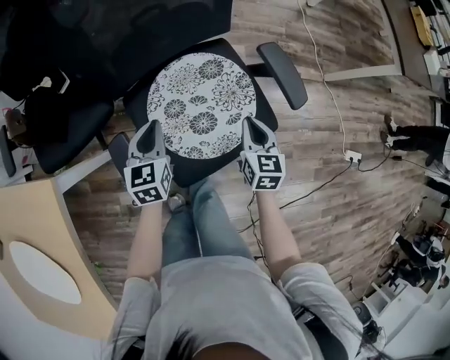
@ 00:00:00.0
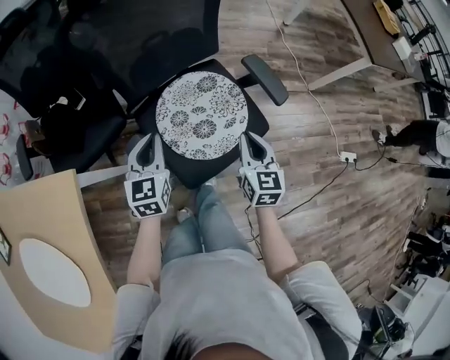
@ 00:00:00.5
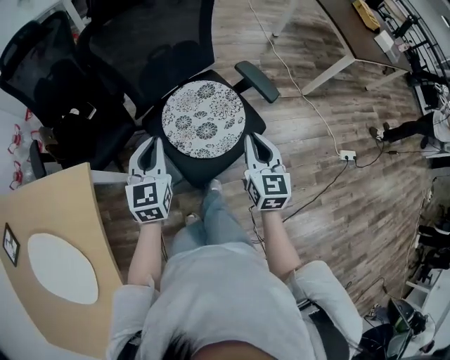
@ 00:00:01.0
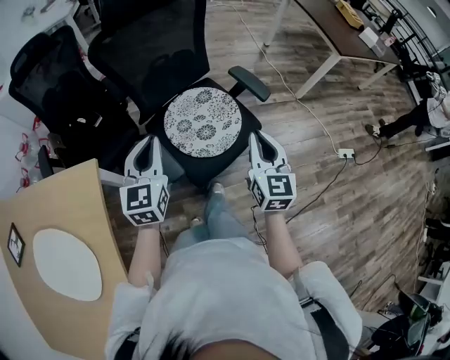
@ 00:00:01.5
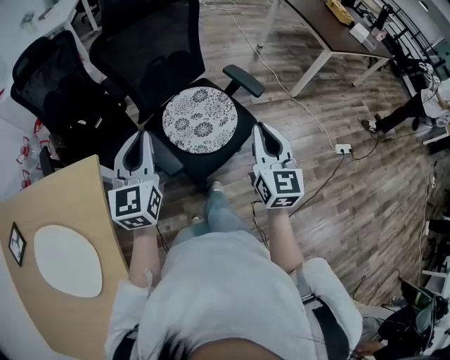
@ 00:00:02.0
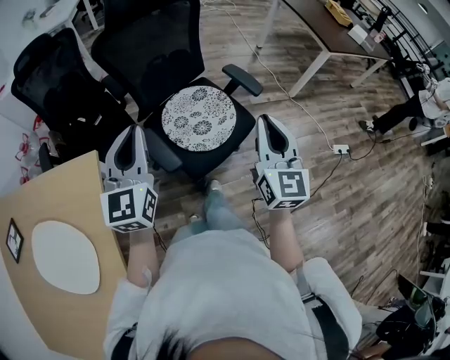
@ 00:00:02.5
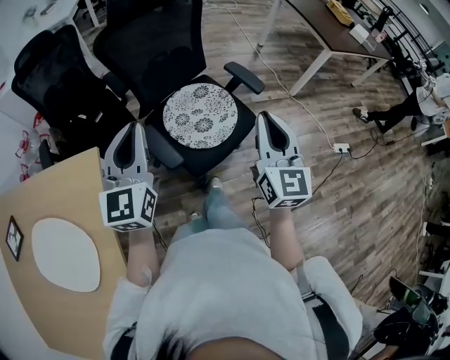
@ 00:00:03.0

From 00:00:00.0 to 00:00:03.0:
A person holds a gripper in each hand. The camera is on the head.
From 00:00:00.0 to 00:00:01.5: The grippers both shift upward and backward by approximately 30 cm. The right gripper changes its angle by about 30 degrees, while the left gripper rotates roughly 30 degrees.
From 00:00:01.5 to 00:00:03.0: The two grippers go roughly 10 cm upward and backward.

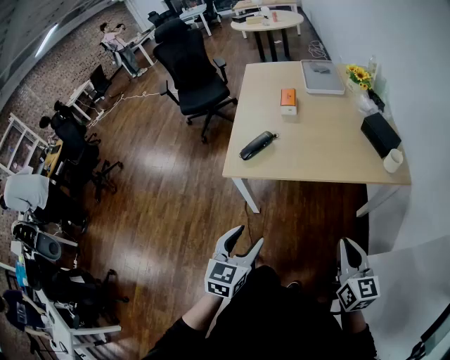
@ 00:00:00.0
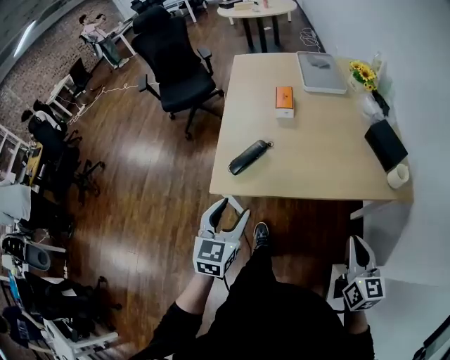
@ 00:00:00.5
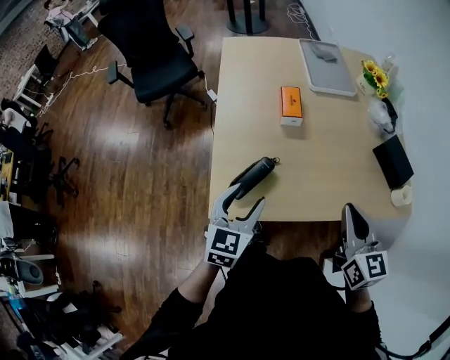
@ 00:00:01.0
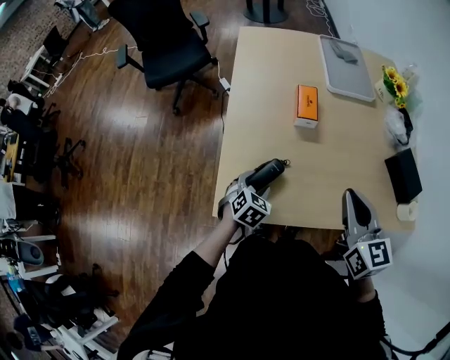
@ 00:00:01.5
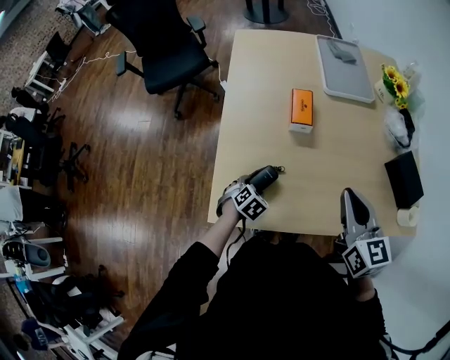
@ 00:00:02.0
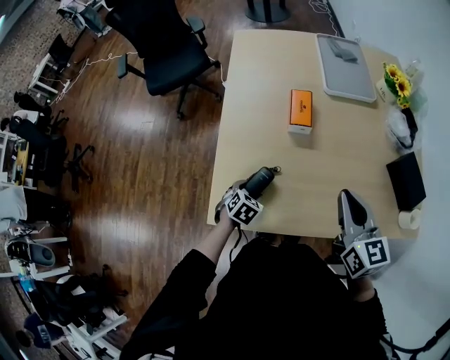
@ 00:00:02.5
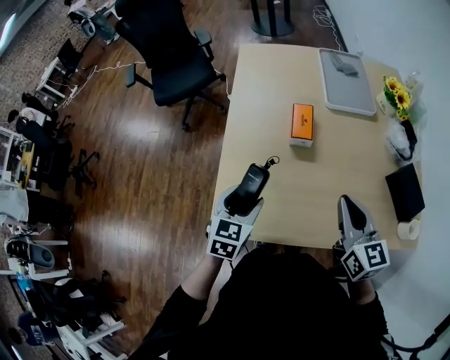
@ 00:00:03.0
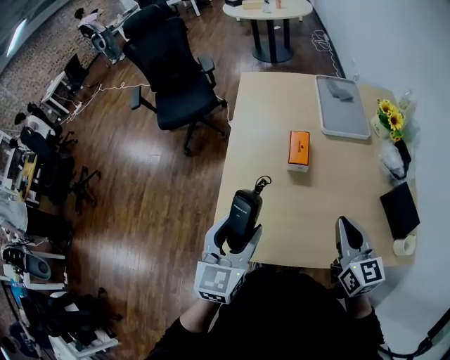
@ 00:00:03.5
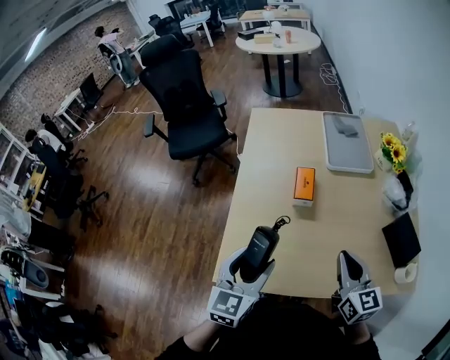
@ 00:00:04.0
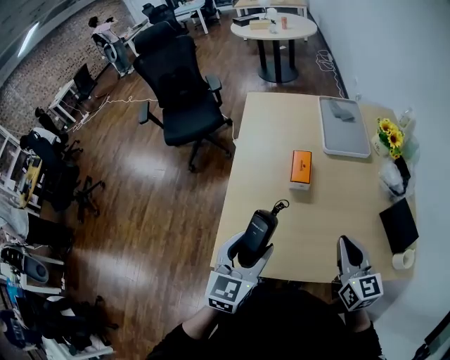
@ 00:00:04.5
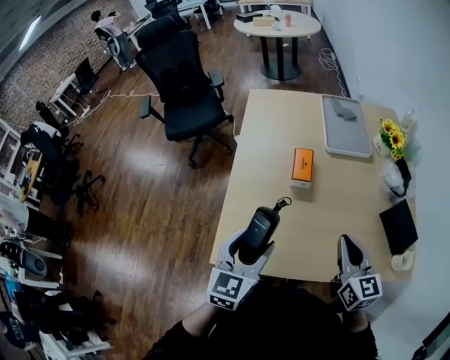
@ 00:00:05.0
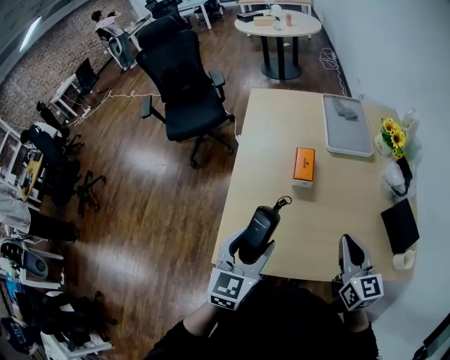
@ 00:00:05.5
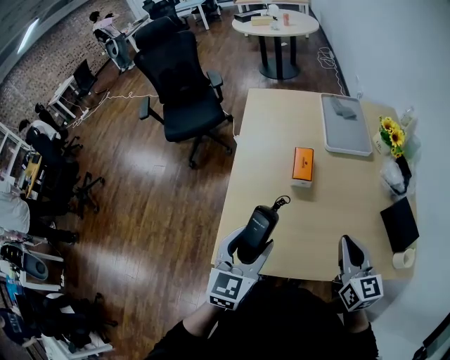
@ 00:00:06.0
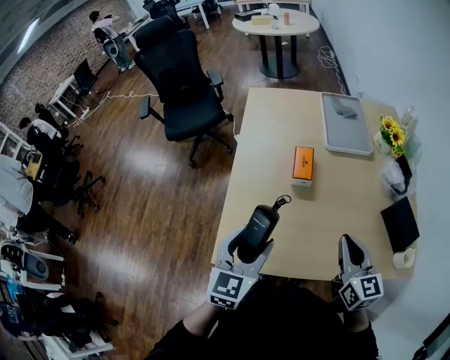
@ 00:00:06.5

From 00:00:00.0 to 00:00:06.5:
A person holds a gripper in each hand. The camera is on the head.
From 00:00:00.0 to 00:00:02.0: The two grippers travel together, forward, roughly 50 cm. The left gripper heads downward, covering roughly 25 cm, and tips its fingers downward by about 40 degrees.
From 00:00:02.0 to 00:00:04.5: The left gripper goes some 30 cm upward, and tilts its fingers approximately 50 degrees upward.
From 00:00:04.5 to 00:00:06.5: Both grippers stay put.

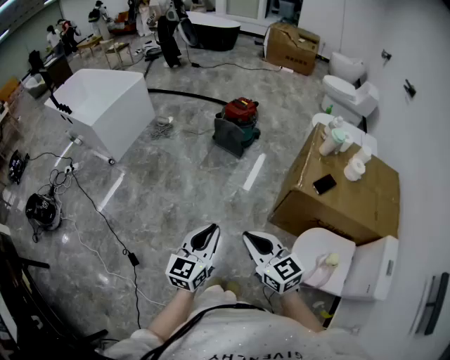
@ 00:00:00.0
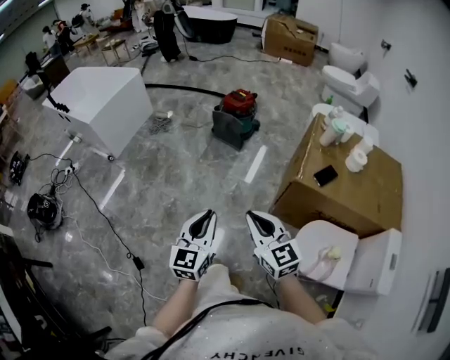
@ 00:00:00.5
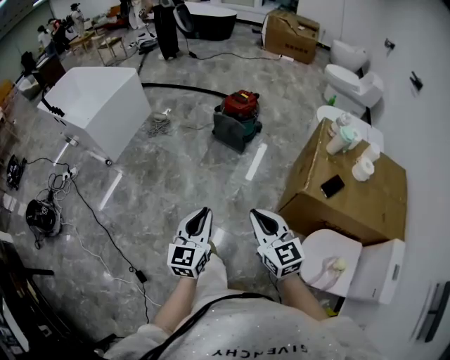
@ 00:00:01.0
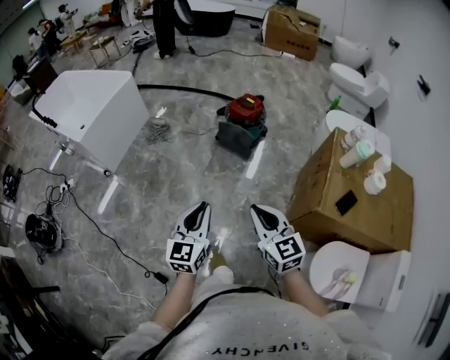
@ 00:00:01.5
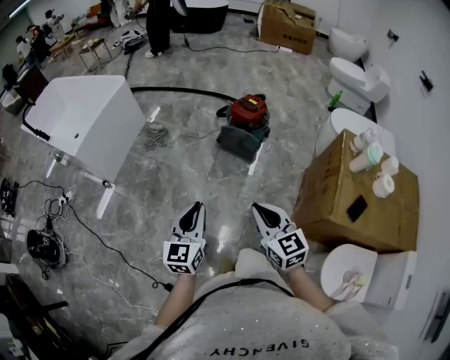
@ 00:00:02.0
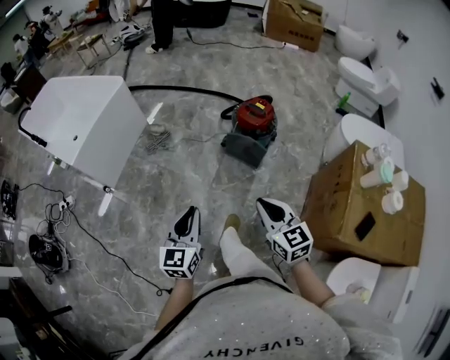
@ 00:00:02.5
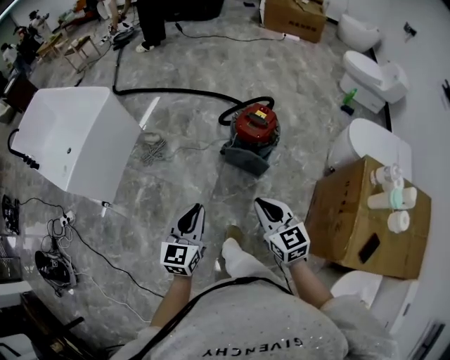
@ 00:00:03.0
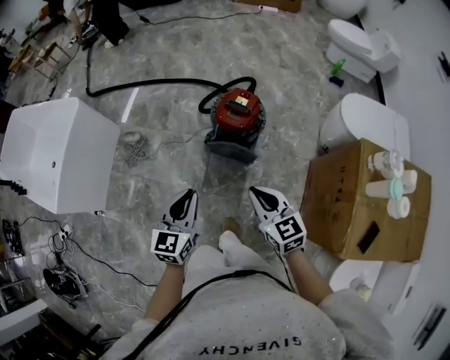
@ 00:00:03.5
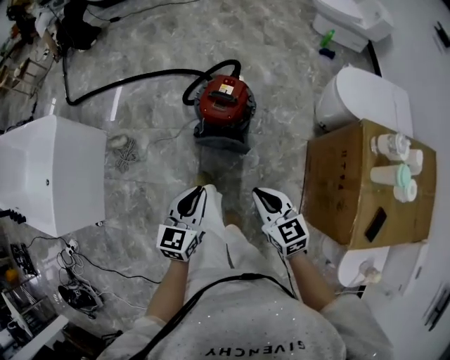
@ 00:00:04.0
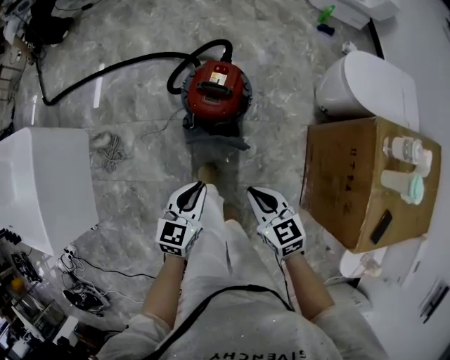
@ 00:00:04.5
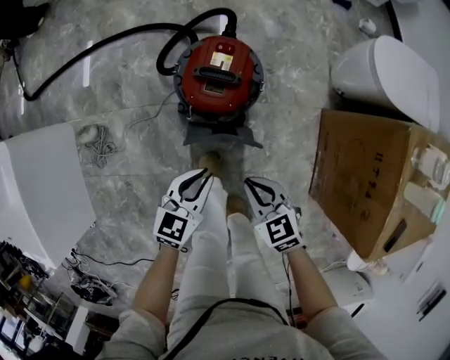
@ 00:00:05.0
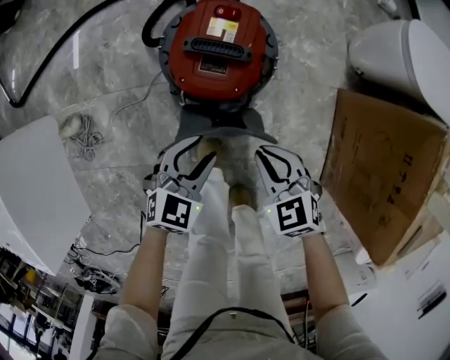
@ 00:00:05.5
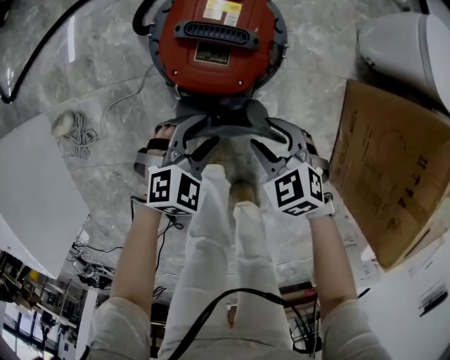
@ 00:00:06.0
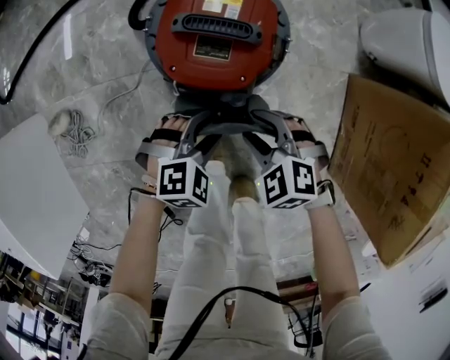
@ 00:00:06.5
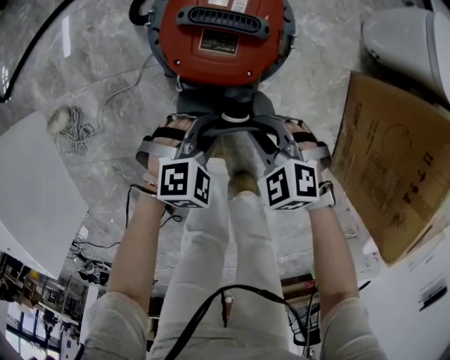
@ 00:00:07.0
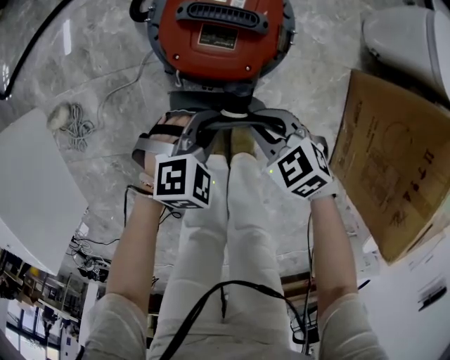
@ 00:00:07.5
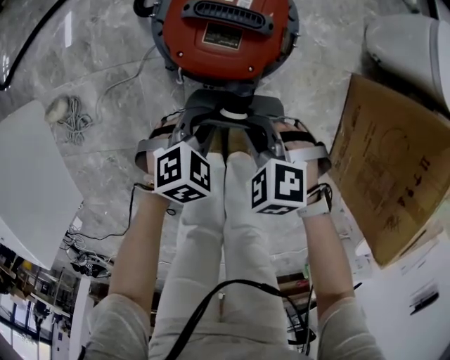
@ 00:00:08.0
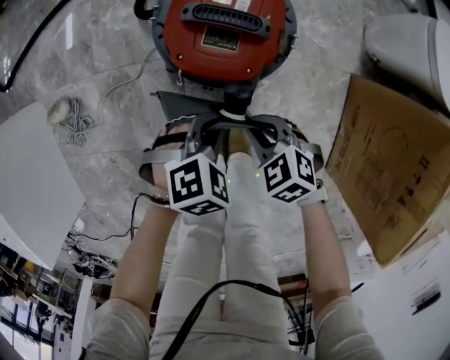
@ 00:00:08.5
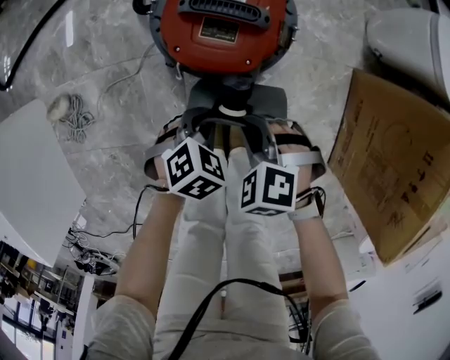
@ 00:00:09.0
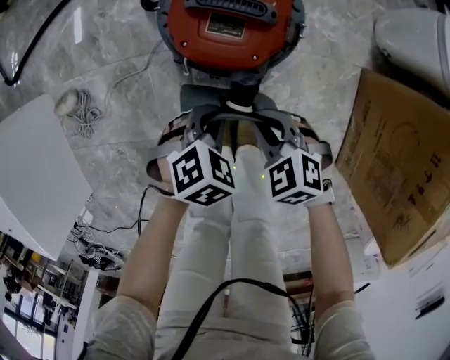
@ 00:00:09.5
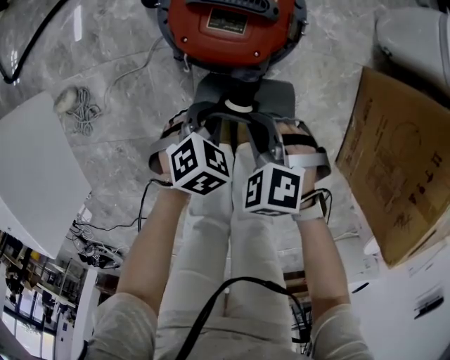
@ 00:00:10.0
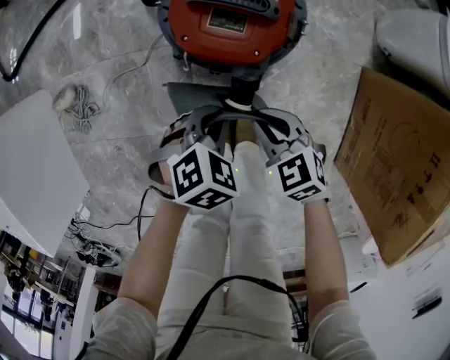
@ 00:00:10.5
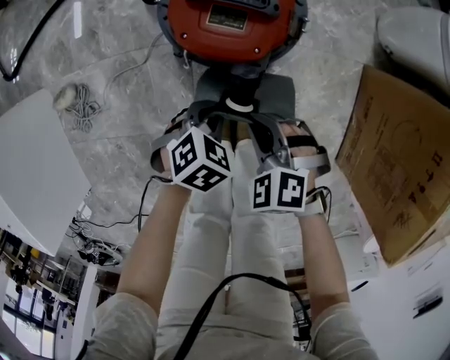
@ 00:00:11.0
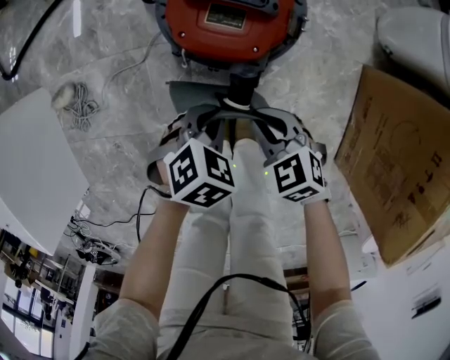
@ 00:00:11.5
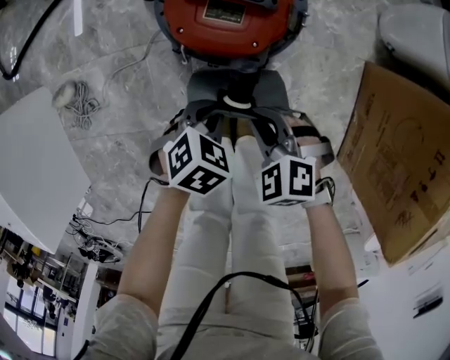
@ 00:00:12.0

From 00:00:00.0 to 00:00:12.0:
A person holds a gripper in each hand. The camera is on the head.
From 00:00:00.0 to 00:00:02.0: The two grippers go about 35 cm forward.
From 00:00:02.0 to 00:00:04.0: The left gripper goes about 35 cm forward, and rotates roughly 30 degrees, while the right gripper shifts some 35 cm forward and downward, and swivels roughly 20 degrees.
From 00:00:04.0 to 00:00:06.0: The two grippers go roughly 40 cm downward and forward. The left gripper changes its angle by roughly 60 degrees, and opens its fingers. The right gripper swivels approximately 40 degrees, and opens.
From 00:00:06.0 to 00:00:08.0: The left gripper closes, while the right gripper turns by roughly 20 degrees, and closes its fingers.

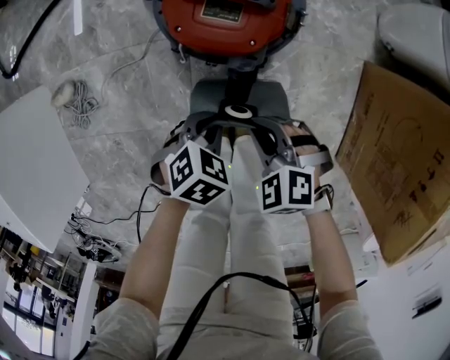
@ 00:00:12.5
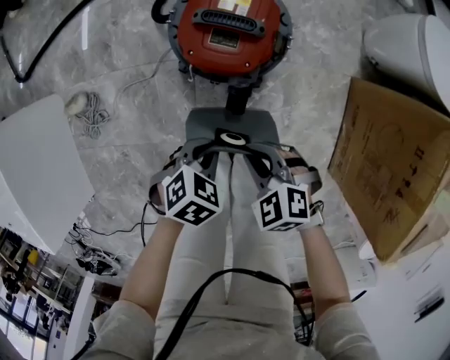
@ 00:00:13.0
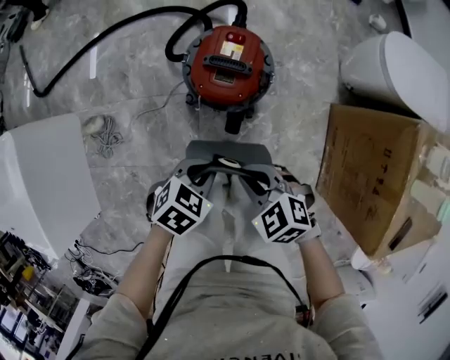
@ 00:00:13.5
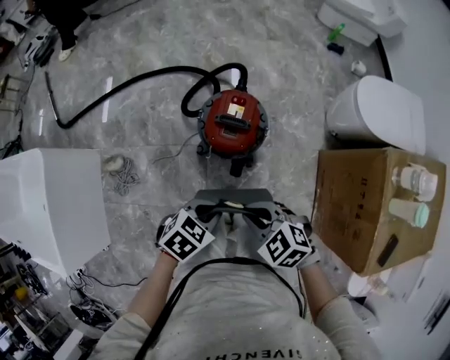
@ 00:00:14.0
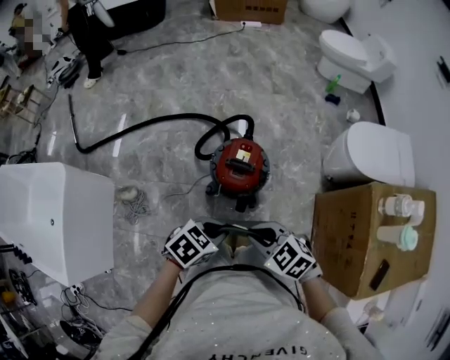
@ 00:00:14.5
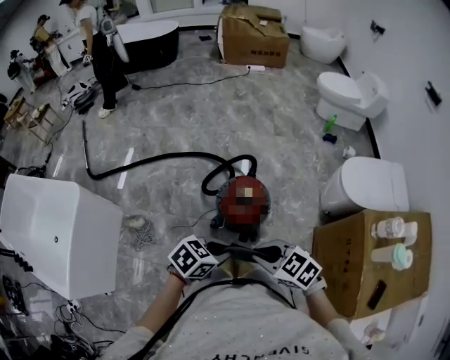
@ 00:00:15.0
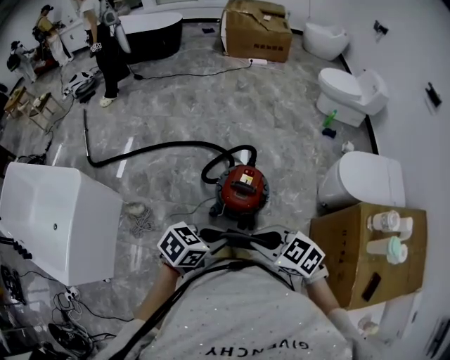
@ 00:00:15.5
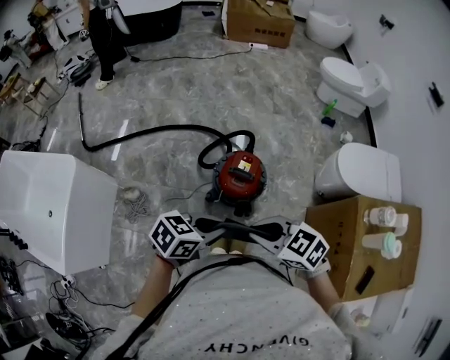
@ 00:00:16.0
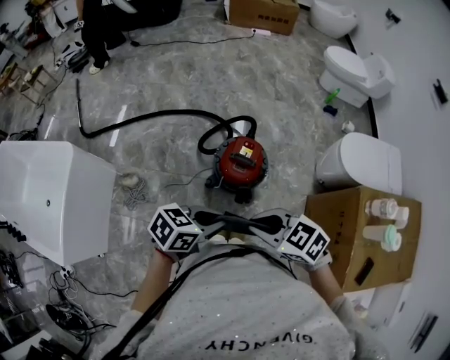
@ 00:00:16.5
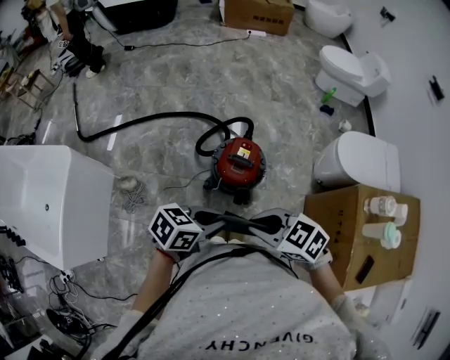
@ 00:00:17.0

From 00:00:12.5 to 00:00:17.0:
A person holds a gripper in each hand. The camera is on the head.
From 00:00:12.5 to 00:00:14.5: The two grippers go roughly 35 cm upward. The left gripper swivels approximately 20 degrees, while the right gripper rotates approximately 20 degrees.
From 00:00:14.5 to 00:00:17.0: The two grippers go some 10 cm upward. The left gripper turns by approximately 20 degrees.
